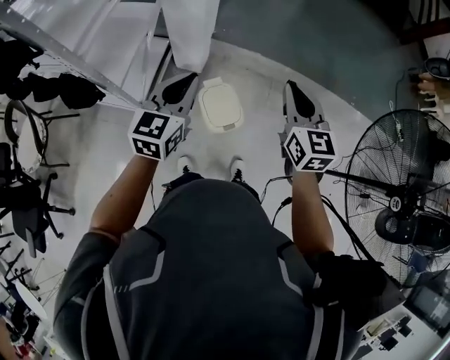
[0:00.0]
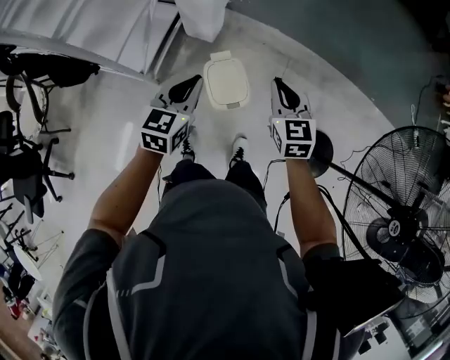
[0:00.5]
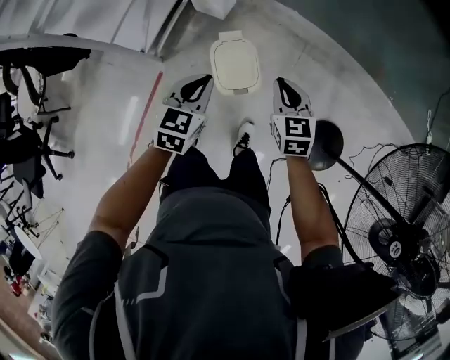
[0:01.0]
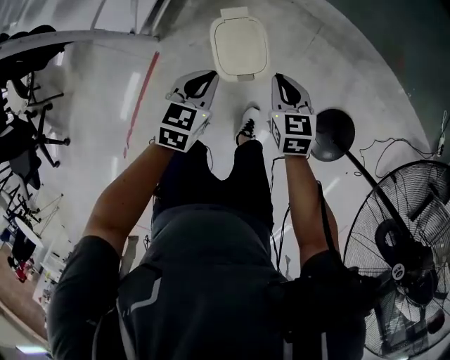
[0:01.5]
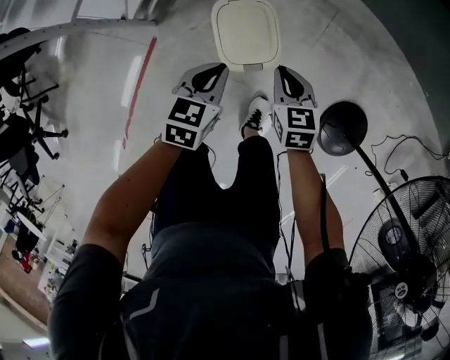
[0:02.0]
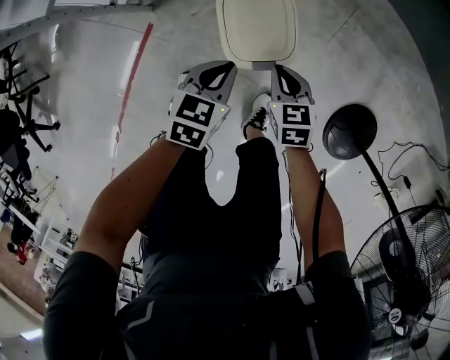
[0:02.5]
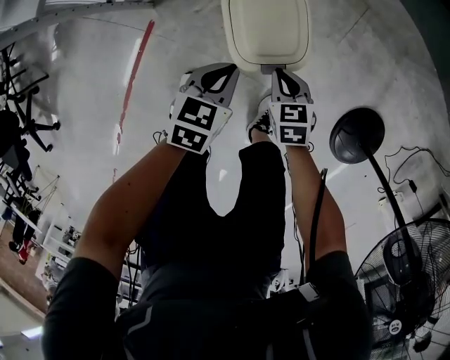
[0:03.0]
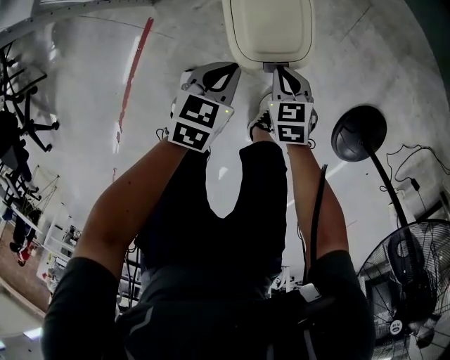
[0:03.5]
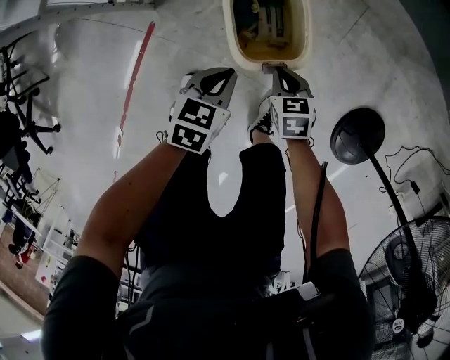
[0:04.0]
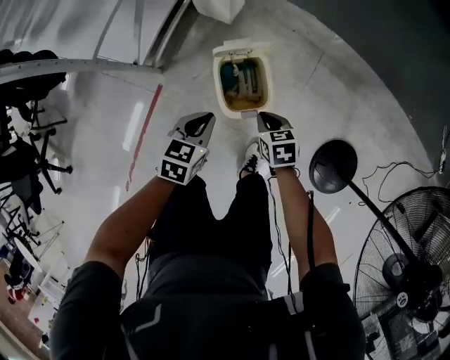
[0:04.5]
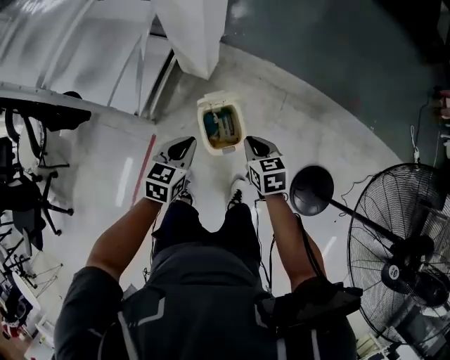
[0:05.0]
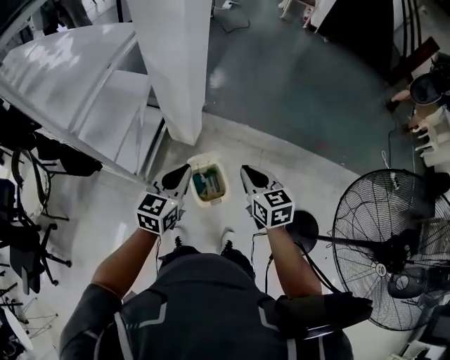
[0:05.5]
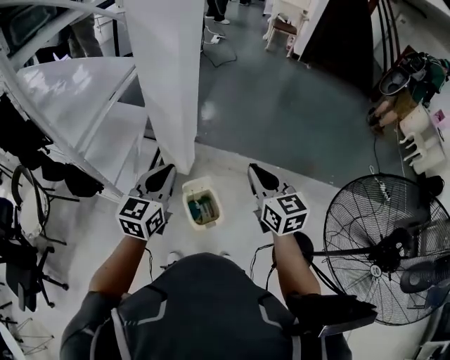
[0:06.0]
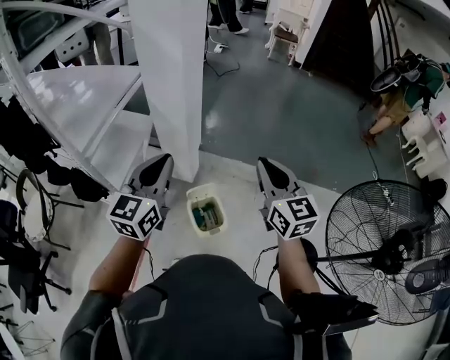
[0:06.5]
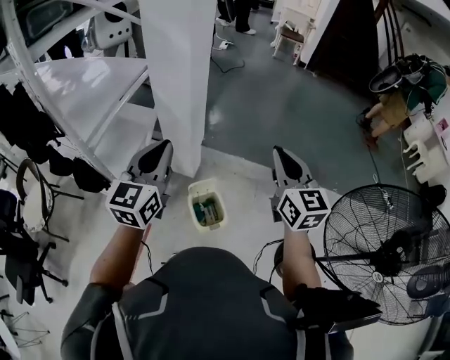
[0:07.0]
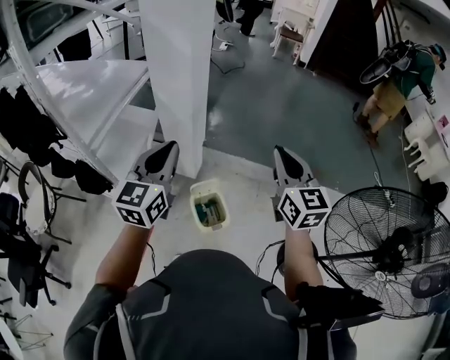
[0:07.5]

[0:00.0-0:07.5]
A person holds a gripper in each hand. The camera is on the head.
0:00.0 to 0:02.0: The grippers both shift downward by some 50 cm. The right gripper rotates approximately 30 degrees, while the left gripper tips its fingers downward by roughly 30 degrees.
0:02.0 to 0:04.0: The two grippers go approximately 15 cm downward.
0:04.0 to 0:05.5: Both grippers move upward, about 50 cm. The left gripper angles its fingers upward, by about 30 degrees, while the right gripper rotates approximately 30 degrees.
0:05.5 to 0:07.5: The grippers both shift upward by some 20 cm. The left gripper turns by about 20 degrees; the right gripper swivels approximately 30 degrees.

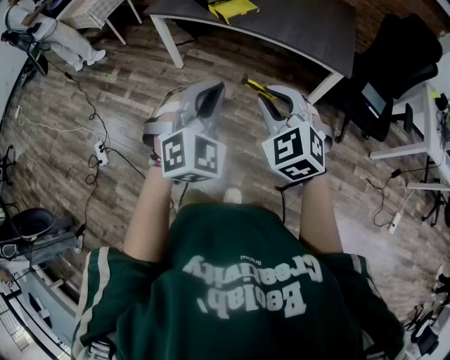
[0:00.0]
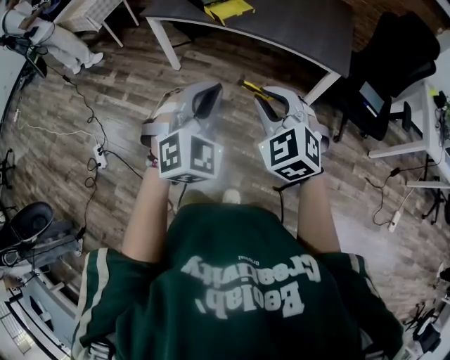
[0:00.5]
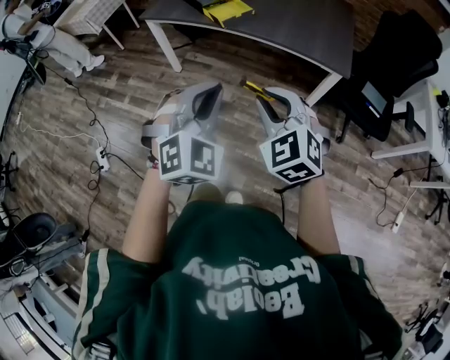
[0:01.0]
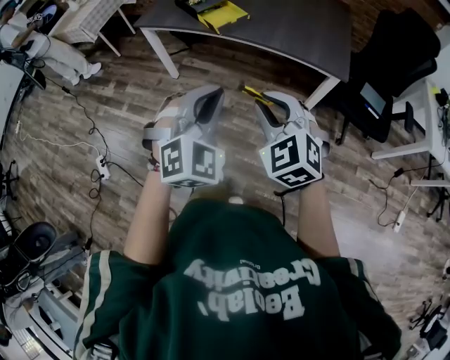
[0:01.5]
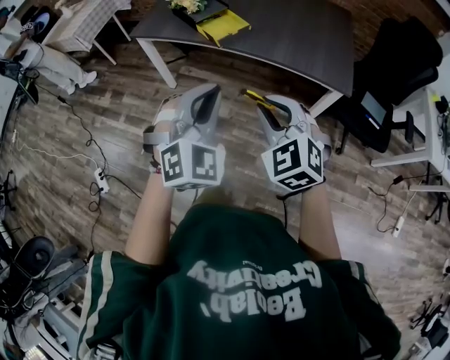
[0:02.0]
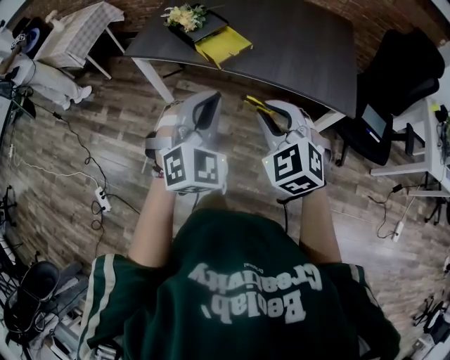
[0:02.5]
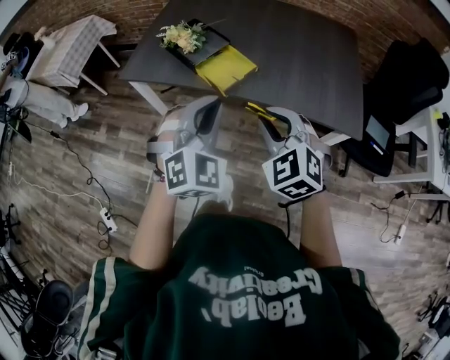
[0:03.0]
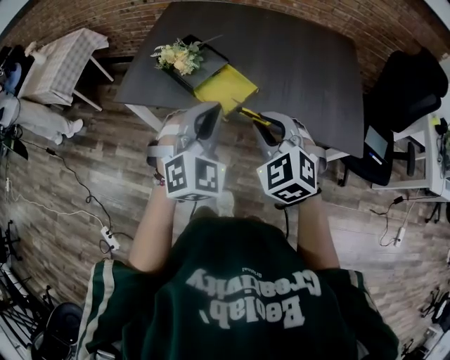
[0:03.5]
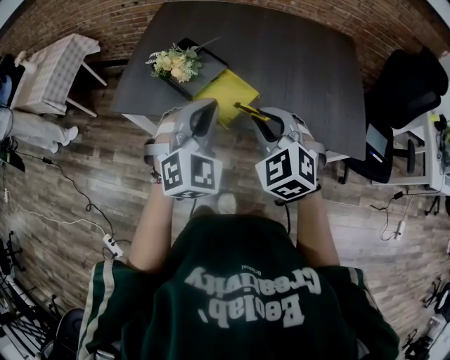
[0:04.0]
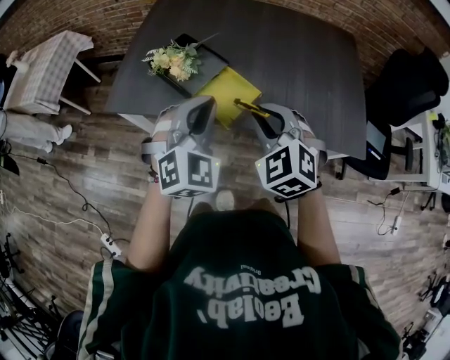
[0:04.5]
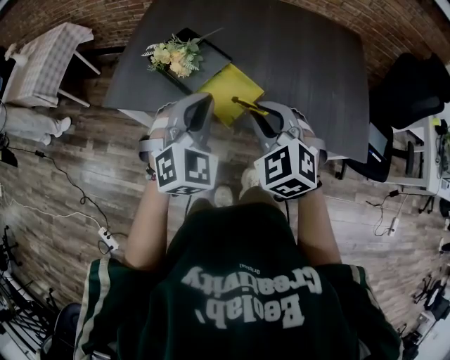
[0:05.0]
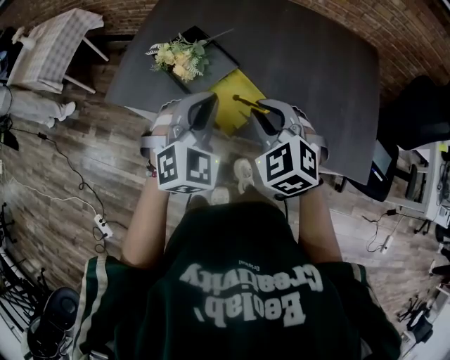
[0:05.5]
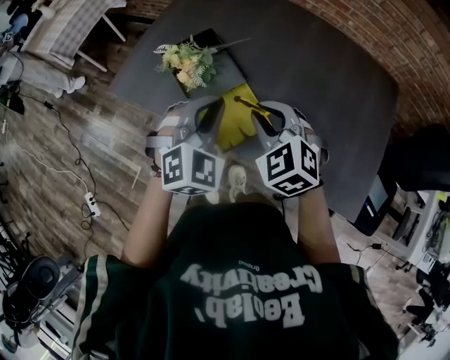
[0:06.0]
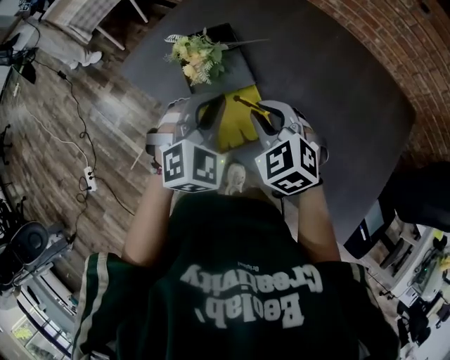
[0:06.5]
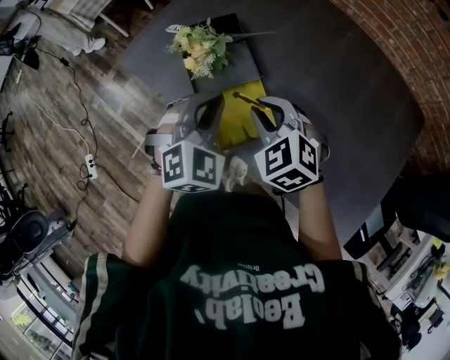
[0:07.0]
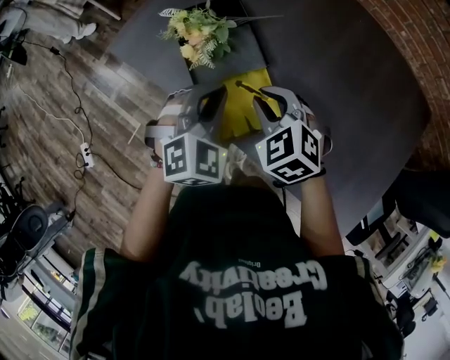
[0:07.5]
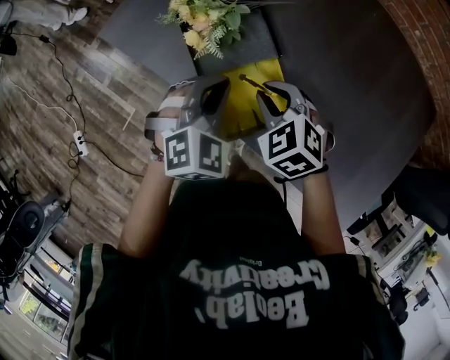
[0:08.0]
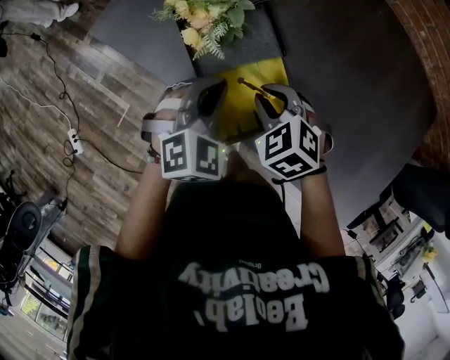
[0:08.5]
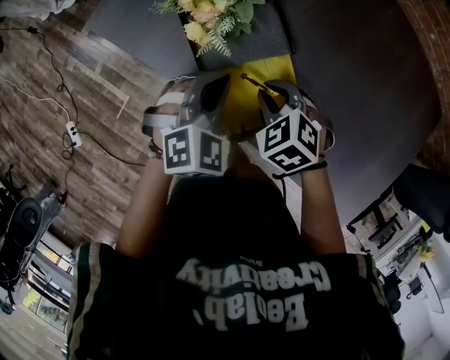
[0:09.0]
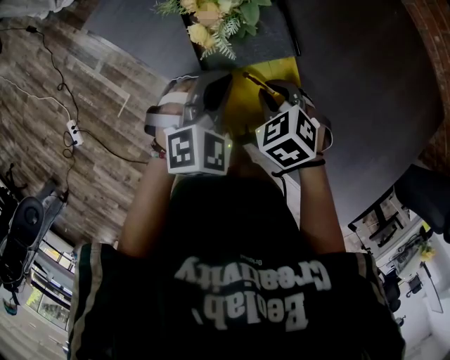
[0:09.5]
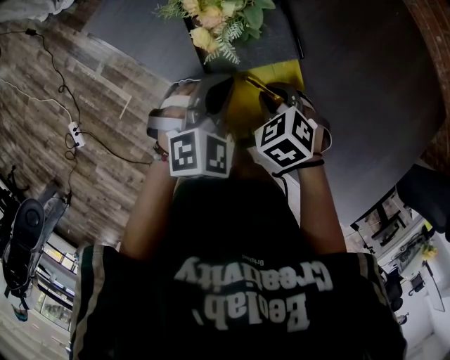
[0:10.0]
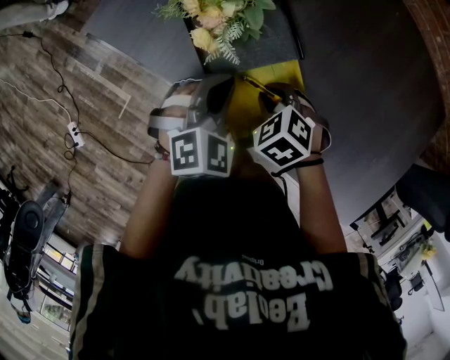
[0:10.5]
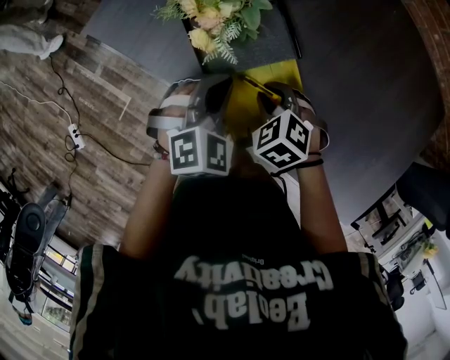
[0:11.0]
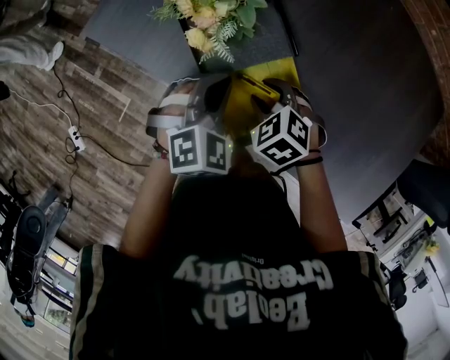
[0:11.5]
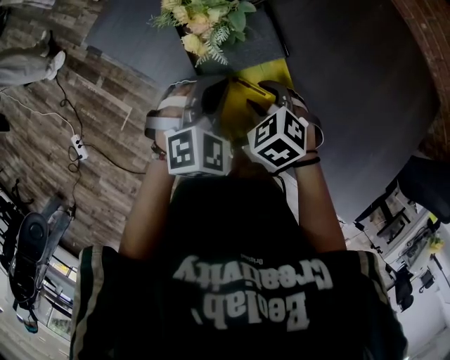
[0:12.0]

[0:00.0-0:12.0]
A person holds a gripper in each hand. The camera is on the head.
0:00.0 to 0:02.0: The grippers both shift forward by approximately 15 cm.
0:02.0 to 0:04.0: Both grippers travel together forward, some 40 cm.
0:04.0 to 0:06.0: The left gripper is displaced forward and downward by about 20 cm. Meanwhile the right gripper shifts approximately 20 cm forward.
0:06.0 to 0:08.0: The two grippers go approximately 15 cm downward and forward.
0:08.0 to 0:10.0: The left gripper travels downward by roughly 5 cm. Meanwhile the right gripper travels downward by about 10 cm.
0:10.0 to 0:12.0: The right gripper opens.

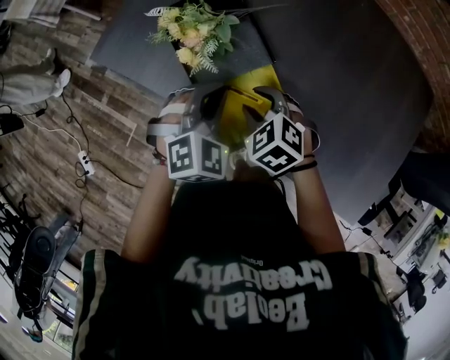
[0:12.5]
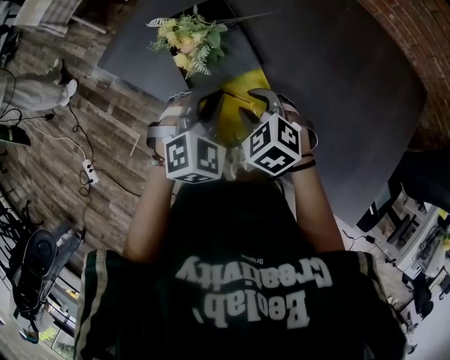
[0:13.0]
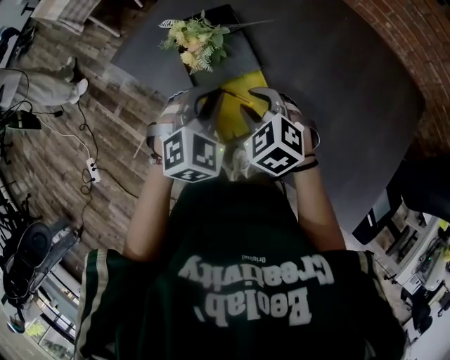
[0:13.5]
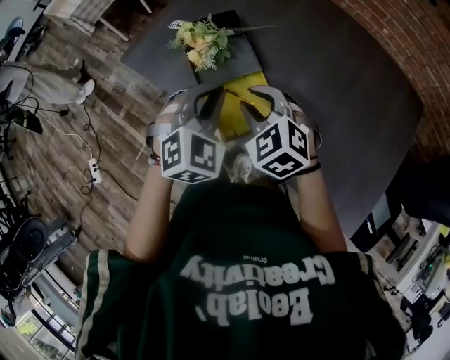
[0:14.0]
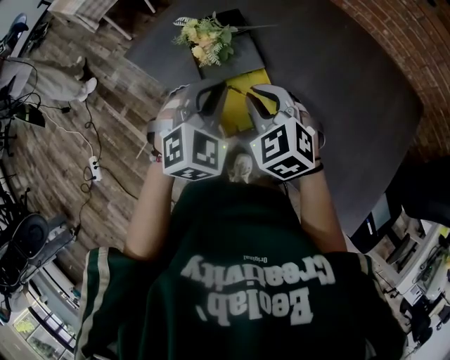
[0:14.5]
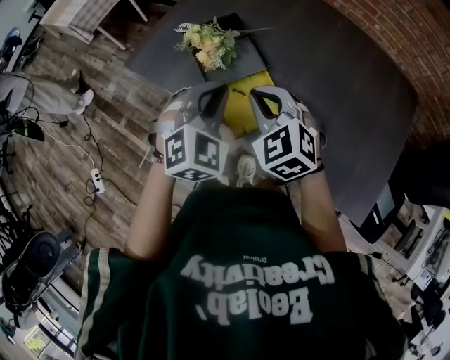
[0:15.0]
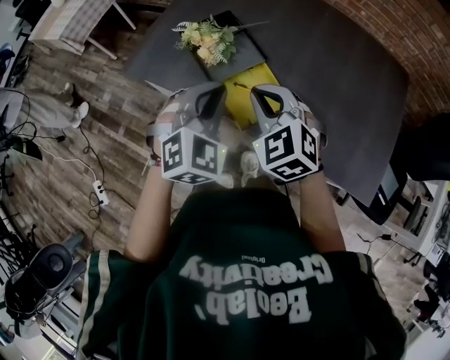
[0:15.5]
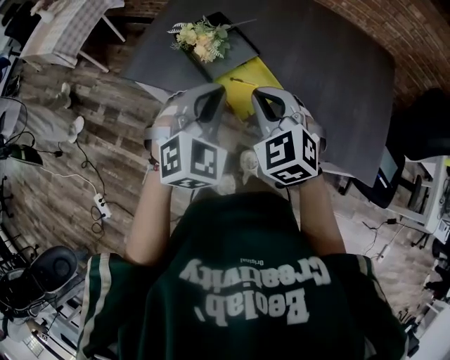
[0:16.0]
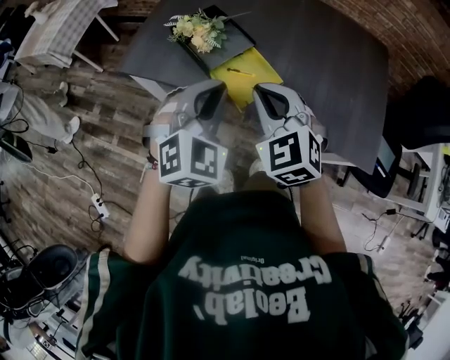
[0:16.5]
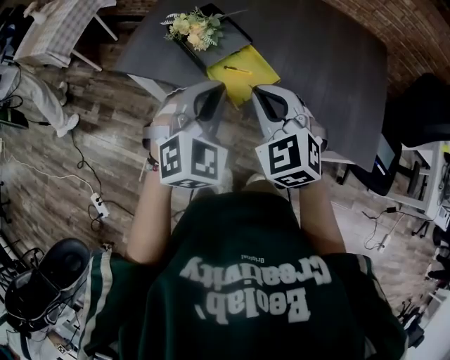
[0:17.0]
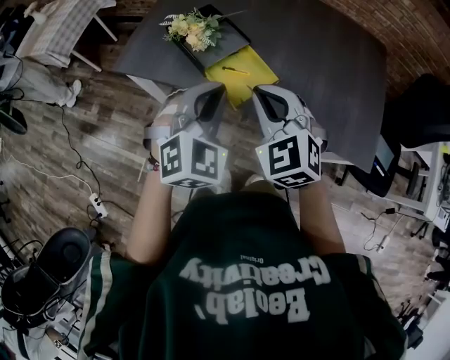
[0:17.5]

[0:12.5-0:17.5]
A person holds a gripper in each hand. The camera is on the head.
0:12.5 to 0:15.0: The left gripper travels upward and backward by roughly 15 cm, while the right gripper moves upward, approximately 20 cm, changes its angle by about 30 degrees, and closes.
0:15.0 to 0:17.5: Both grippers travel together backward, roughly 15 cm.

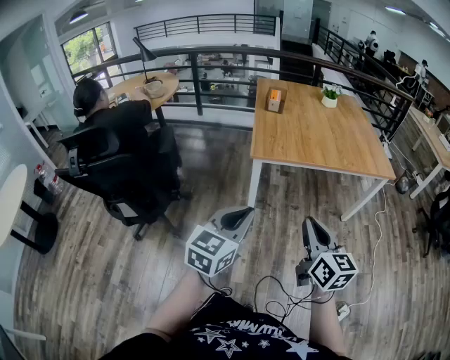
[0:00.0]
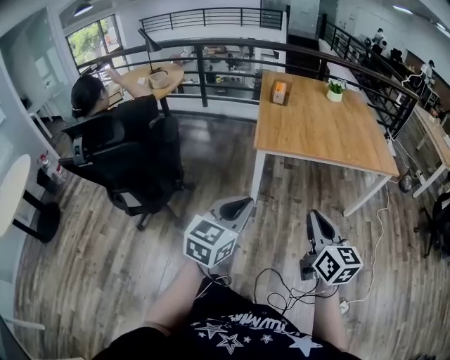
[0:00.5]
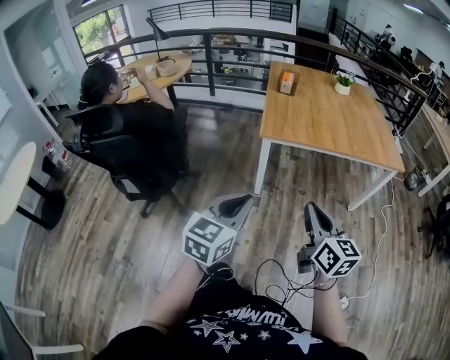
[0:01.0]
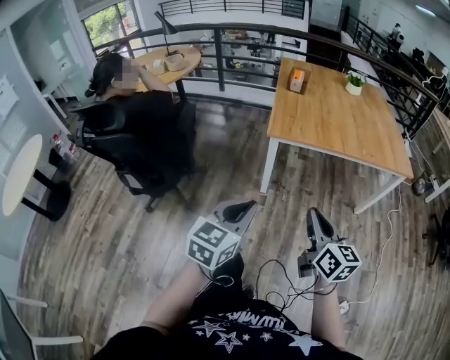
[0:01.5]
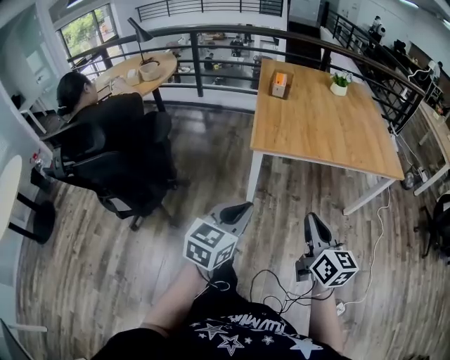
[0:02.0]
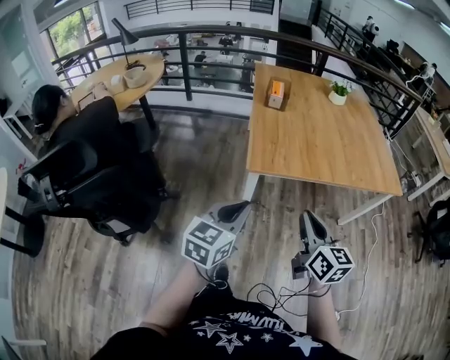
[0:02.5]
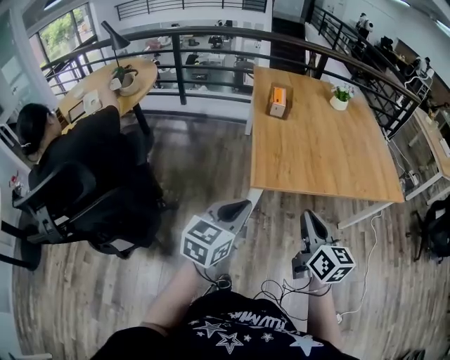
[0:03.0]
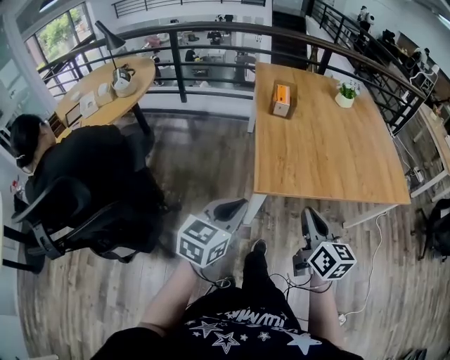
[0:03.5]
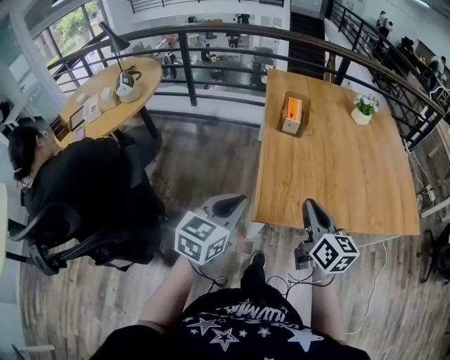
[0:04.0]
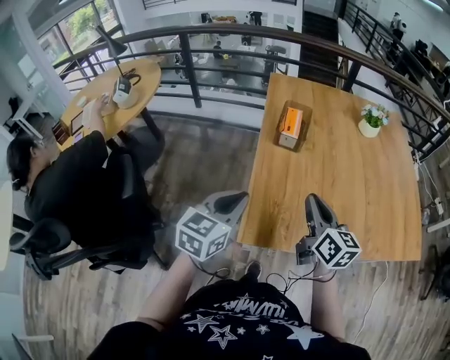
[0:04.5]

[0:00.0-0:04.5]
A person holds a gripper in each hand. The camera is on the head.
0:00.0 to 0:02.0: The left gripper is displaced forward and downward by some 10 cm. The right gripper shifts about 10 cm forward.
0:02.0 to 0:04.5: The two grippers travel together, forward, about 60 cm.
